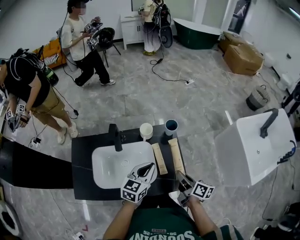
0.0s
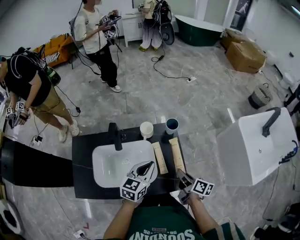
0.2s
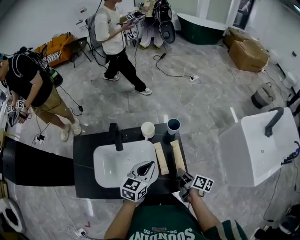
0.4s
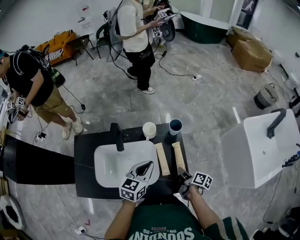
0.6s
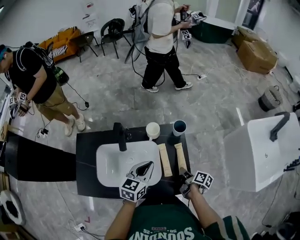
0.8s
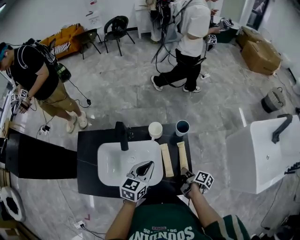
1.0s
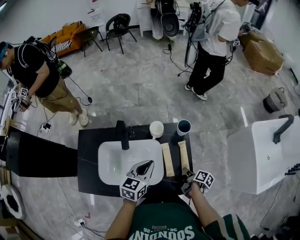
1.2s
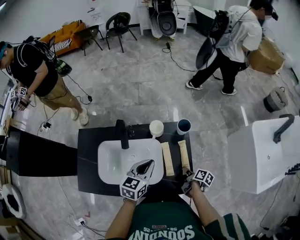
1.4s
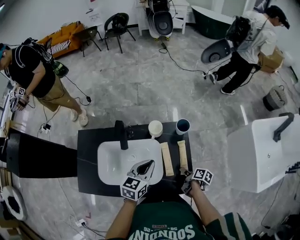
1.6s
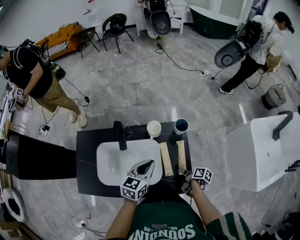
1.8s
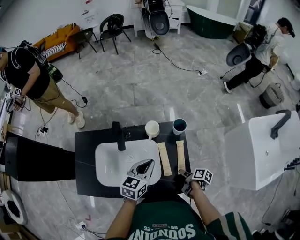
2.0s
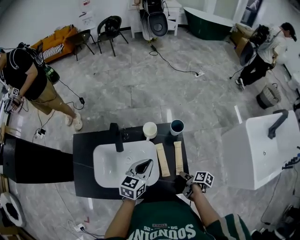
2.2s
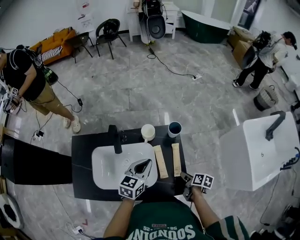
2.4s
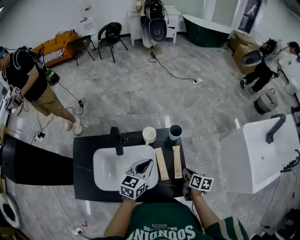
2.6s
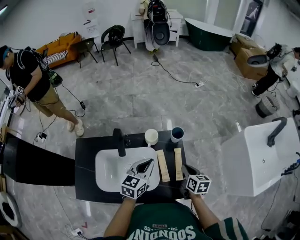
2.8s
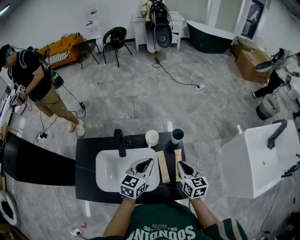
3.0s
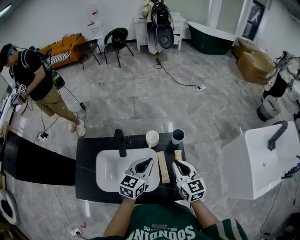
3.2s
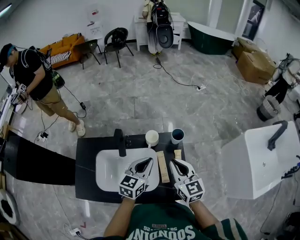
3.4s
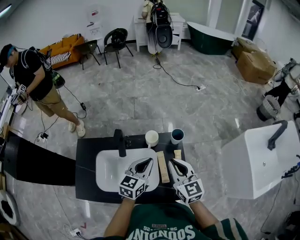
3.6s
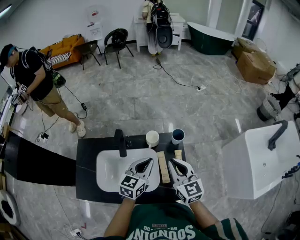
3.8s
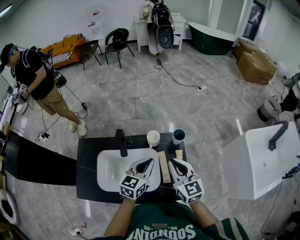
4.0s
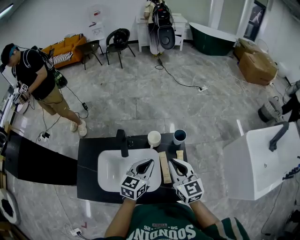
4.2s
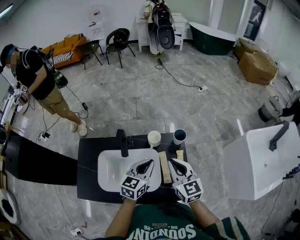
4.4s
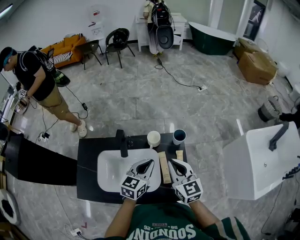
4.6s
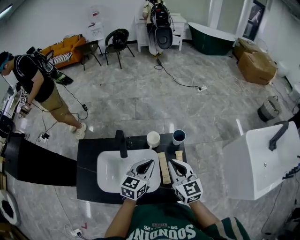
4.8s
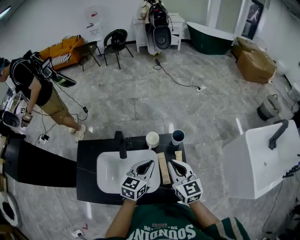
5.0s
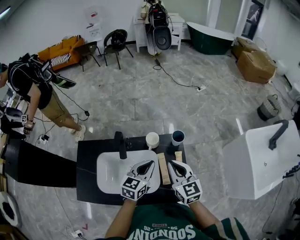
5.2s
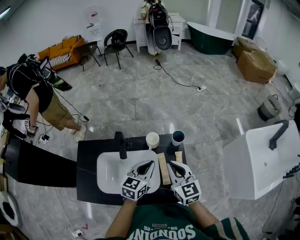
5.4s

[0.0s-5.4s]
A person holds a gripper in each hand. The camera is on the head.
0.0s to 1.4s: The right gripper is displaced downward by about 20 cm, and changes its angle by roughly 30 degrees; the left gripper moves approximately 5 cm.
1.4s to 2.8s: The right gripper shifts roughly 15 cm upward, rotates around the line of its fingers by about 40 degrees, counterclockwise from behind, and closes up.
2.8s to 4.0s: The right gripper travels upward and to the left by some 20 cm, and turns by approximately 40 degrees.
4.0s to 5.4s: The grippers stay close to where they were, moving slightly.

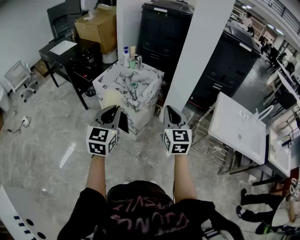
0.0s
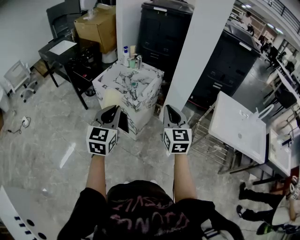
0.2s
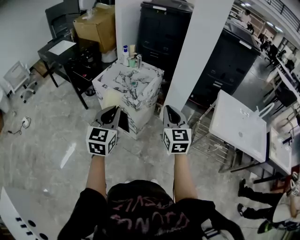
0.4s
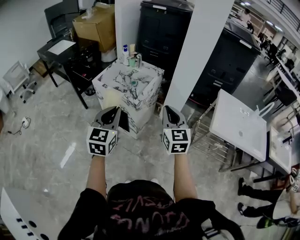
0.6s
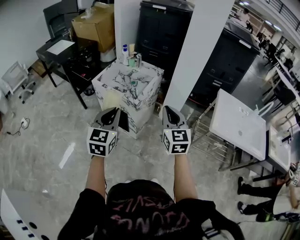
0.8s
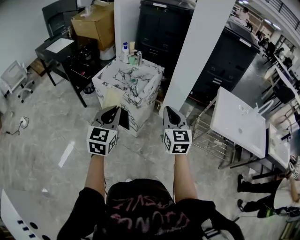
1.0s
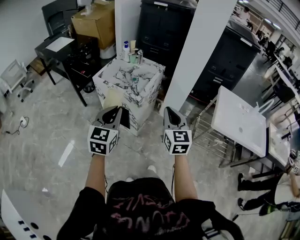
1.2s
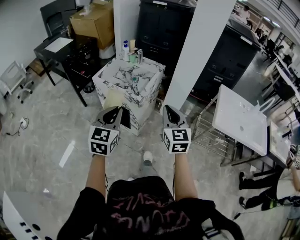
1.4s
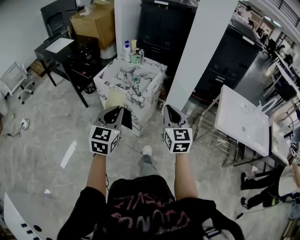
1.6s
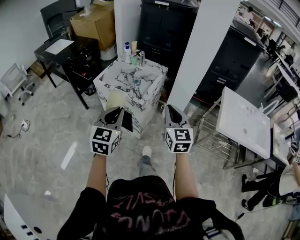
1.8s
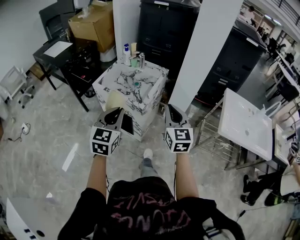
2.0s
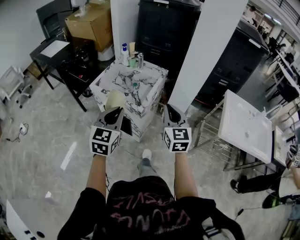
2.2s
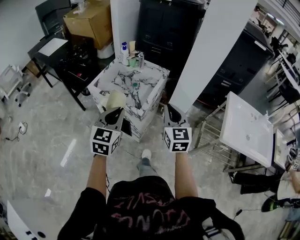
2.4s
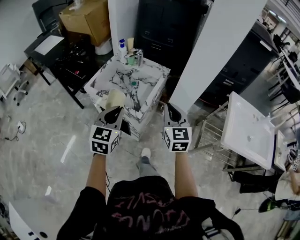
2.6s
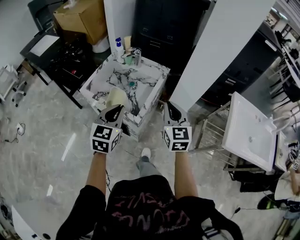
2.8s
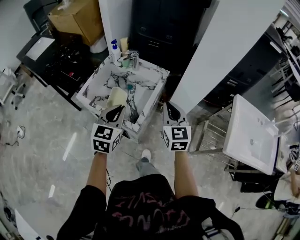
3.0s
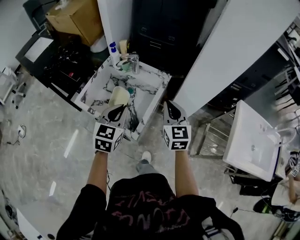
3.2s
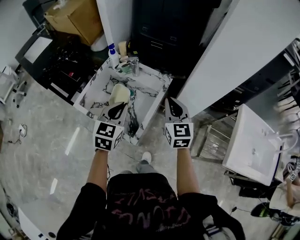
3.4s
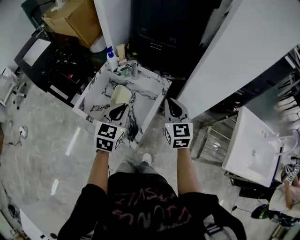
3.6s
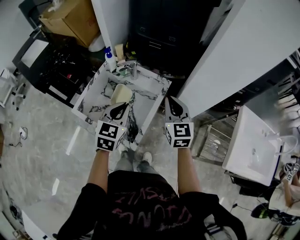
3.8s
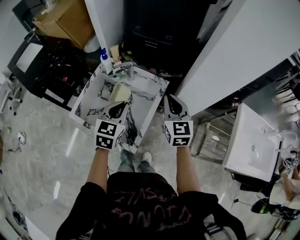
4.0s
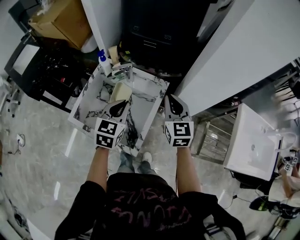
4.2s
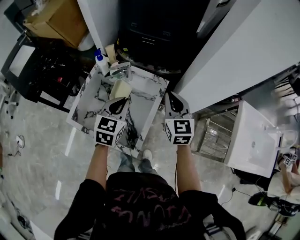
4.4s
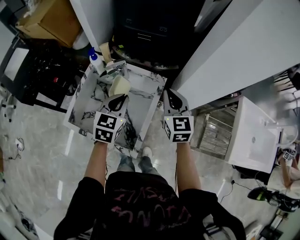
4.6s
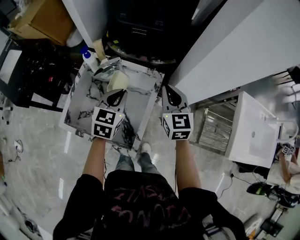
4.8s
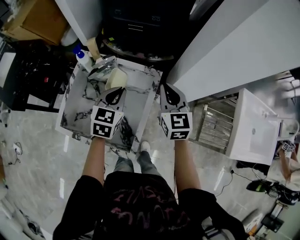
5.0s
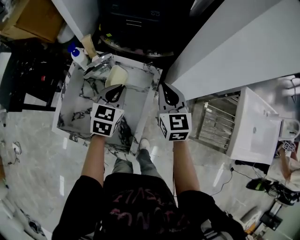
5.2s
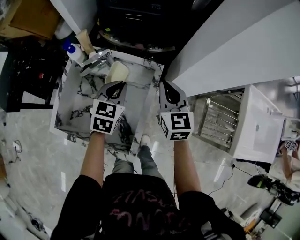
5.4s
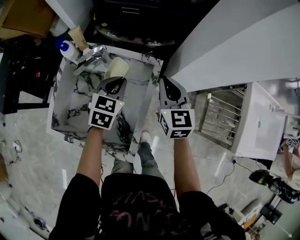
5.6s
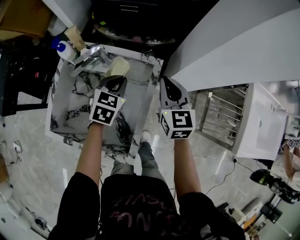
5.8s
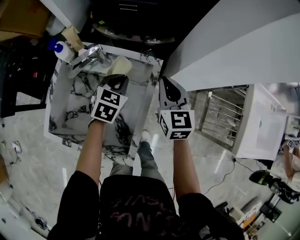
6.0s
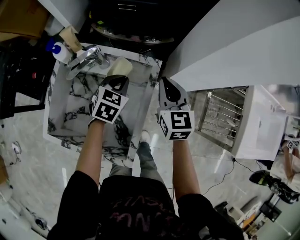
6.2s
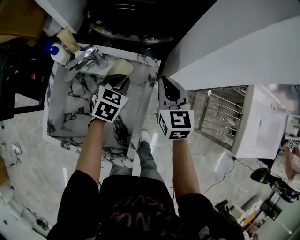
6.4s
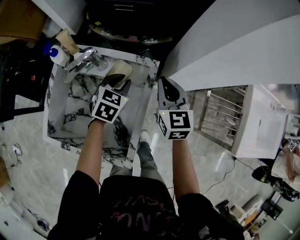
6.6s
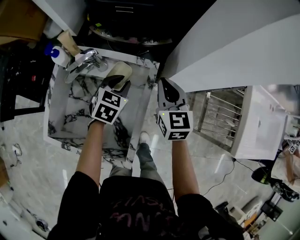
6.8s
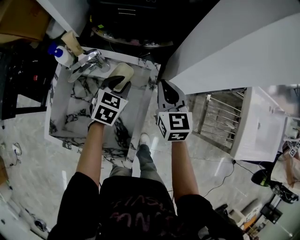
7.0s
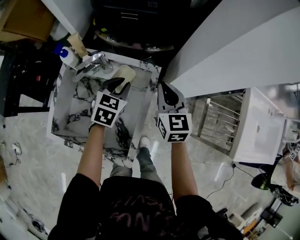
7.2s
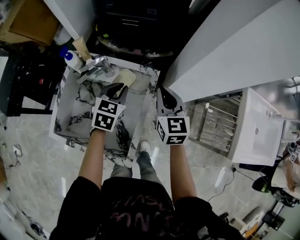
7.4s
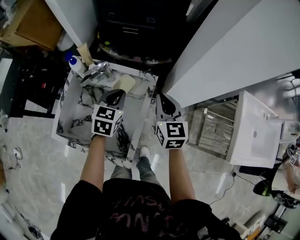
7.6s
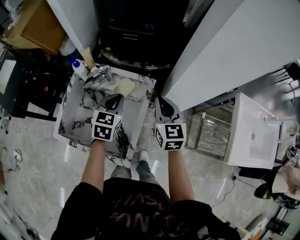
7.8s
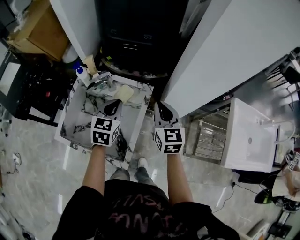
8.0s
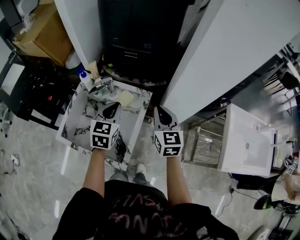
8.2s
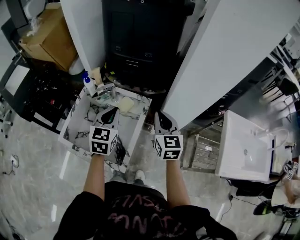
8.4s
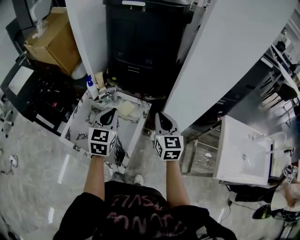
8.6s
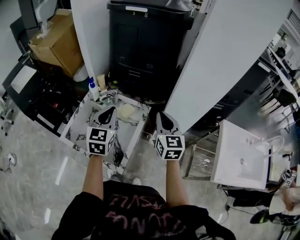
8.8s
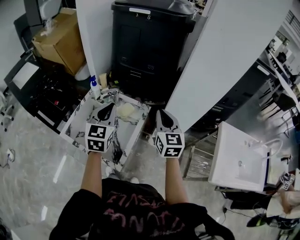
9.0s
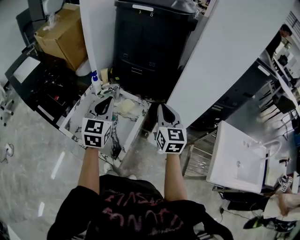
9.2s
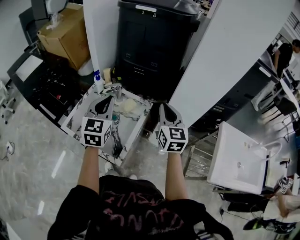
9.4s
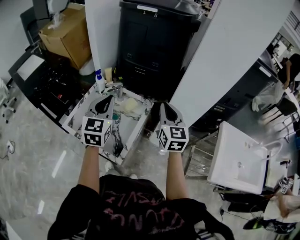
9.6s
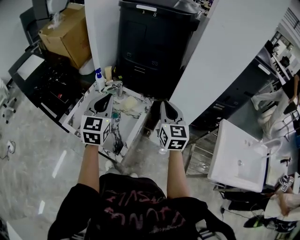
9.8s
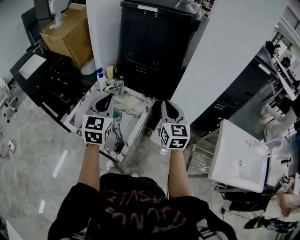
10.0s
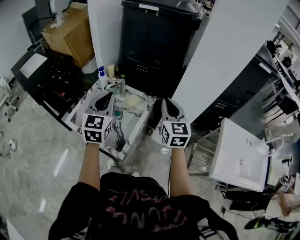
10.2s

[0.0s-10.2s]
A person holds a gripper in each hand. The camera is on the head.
0.0s to 1.4s: The right gripper ends up roughly 5 cm from where it was. The left gripper changes place by about 5 cm.
1.4s to 3.0s: Both grippers travel together forward, roughly 30 cm.
3.0s to 4.4s: Both grippers travel together forward, about 20 cm.
4.4s to 5.8s: The two grippers go roughly 15 cm downward and forward.
5.8s to 7.2s: The grippers make only small movements.
7.2s to 8.8s: Both grippers move upward and backward, roughly 20 cm. The left gripper changes its angle by roughly 30 degrees.
8.8s to 10.2s: The left gripper is displaced backward and upward by about 10 cm. The right gripper moves some 5 cm.

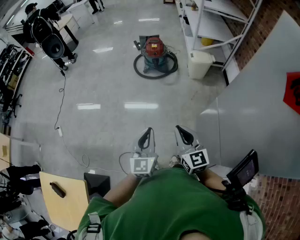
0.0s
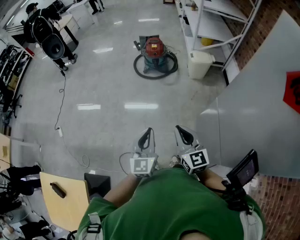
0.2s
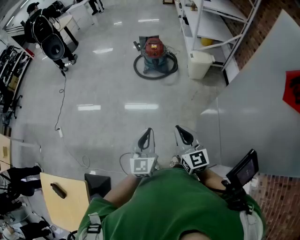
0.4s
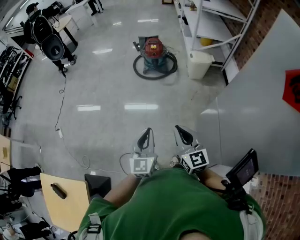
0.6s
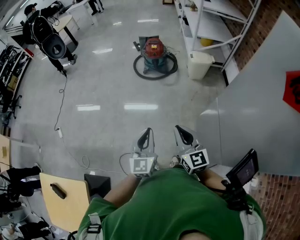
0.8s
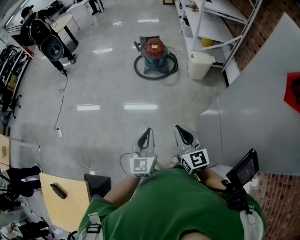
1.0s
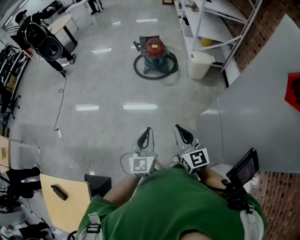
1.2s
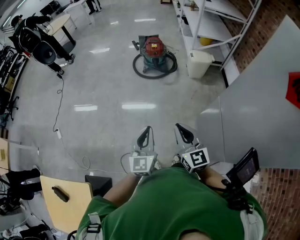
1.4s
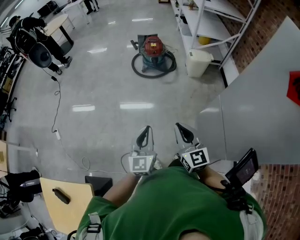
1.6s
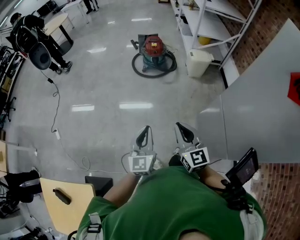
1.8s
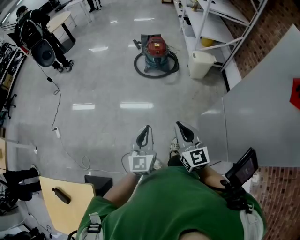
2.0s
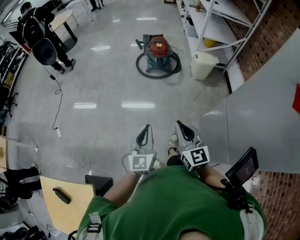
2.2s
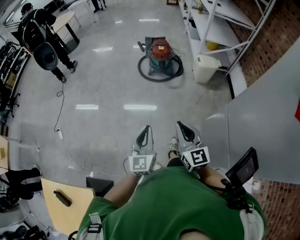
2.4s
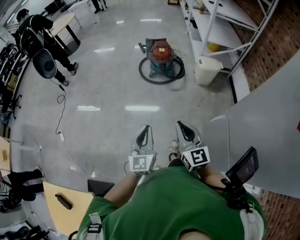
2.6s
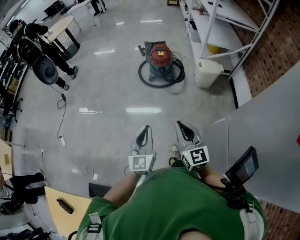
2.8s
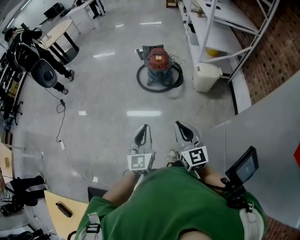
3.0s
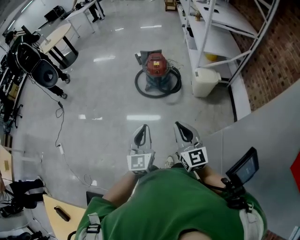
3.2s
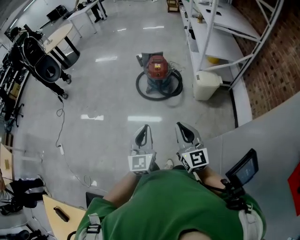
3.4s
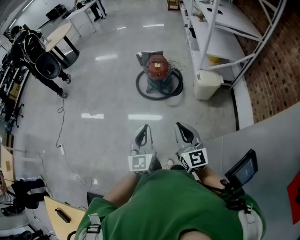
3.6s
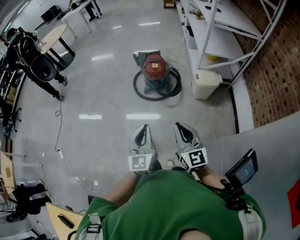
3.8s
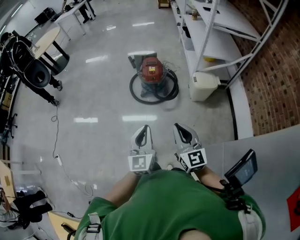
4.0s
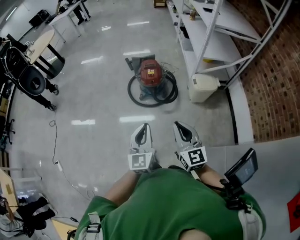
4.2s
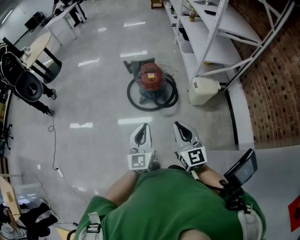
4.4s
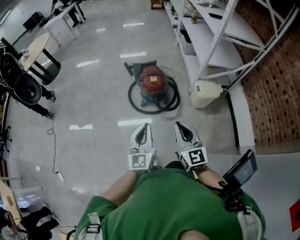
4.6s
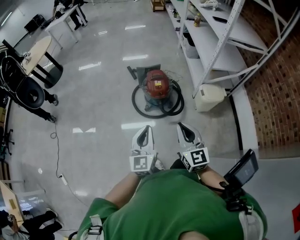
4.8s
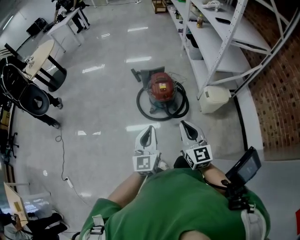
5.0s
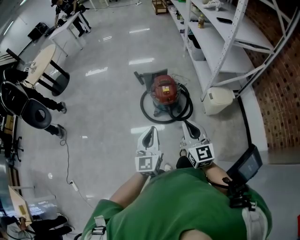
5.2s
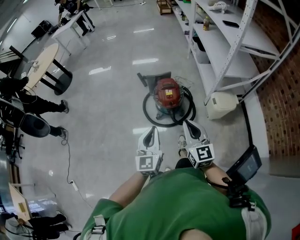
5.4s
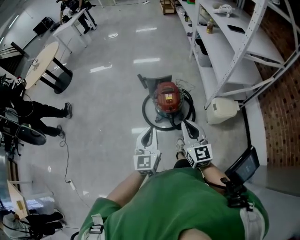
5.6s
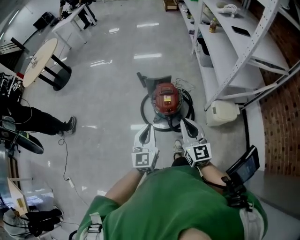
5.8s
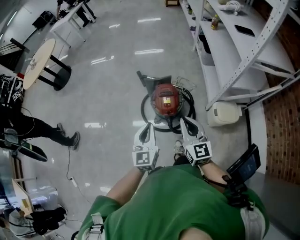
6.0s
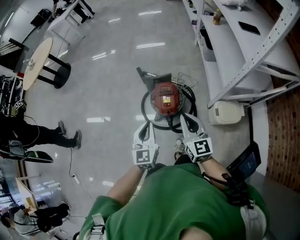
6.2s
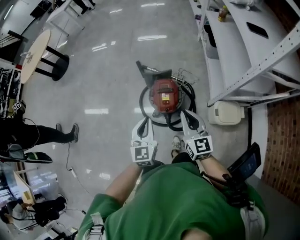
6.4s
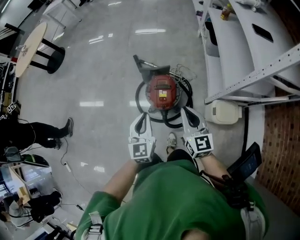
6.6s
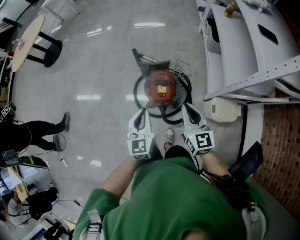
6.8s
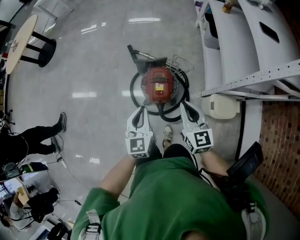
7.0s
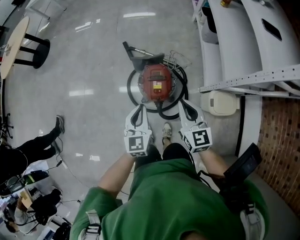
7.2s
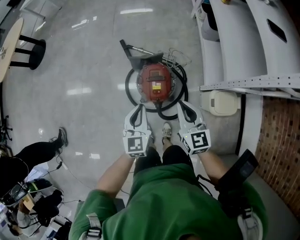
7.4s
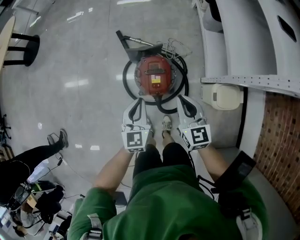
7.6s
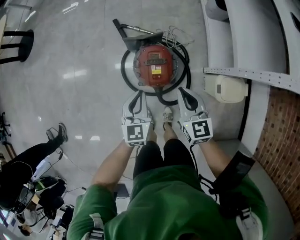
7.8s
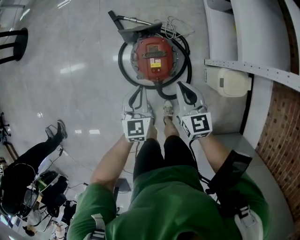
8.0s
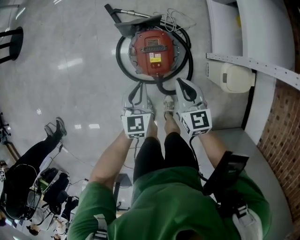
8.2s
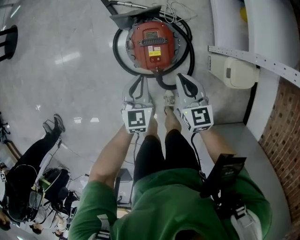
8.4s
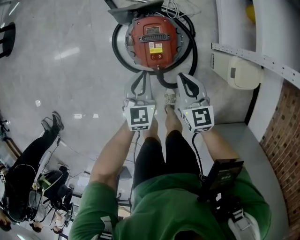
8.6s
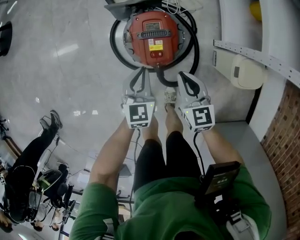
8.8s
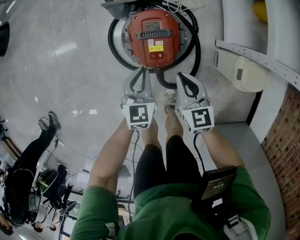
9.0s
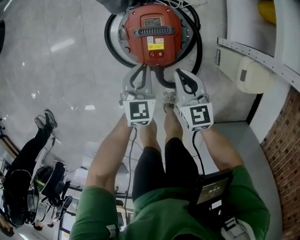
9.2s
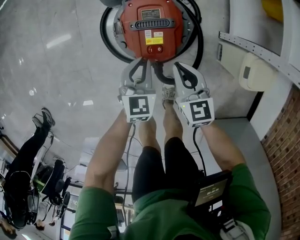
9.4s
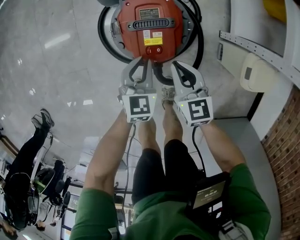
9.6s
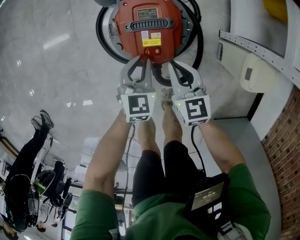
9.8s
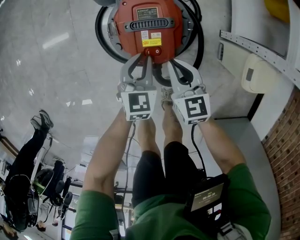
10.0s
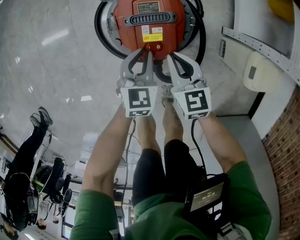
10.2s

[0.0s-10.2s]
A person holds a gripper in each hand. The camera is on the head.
0.0s to 1.4s: Both grippers move to the left, about 5 cm.
1.4s to 3.0s: The grippers both shift forward by about 20 cm.
3.0s to 4.4s: Both grippers move forward, roughly 30 cm.
4.4s to 5.8s: The two grippers go about 30 cm forward.
5.8s to 7.2s: The grippers both shift forward and downward by roughly 20 cm.
7.2s to 8.8s: Both grippers travel together downward, some 30 cm.
8.8s to 10.2s: The grippers both shift downward by some 15 cm.
